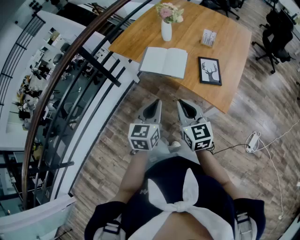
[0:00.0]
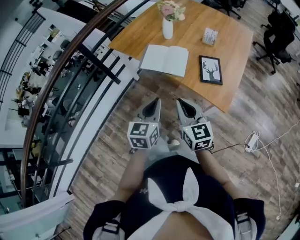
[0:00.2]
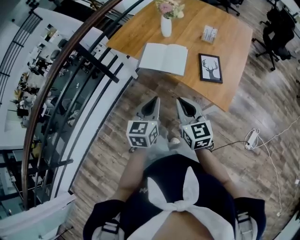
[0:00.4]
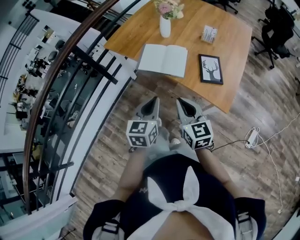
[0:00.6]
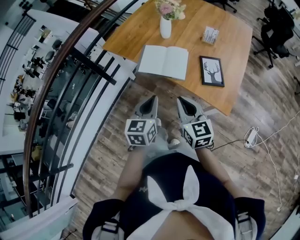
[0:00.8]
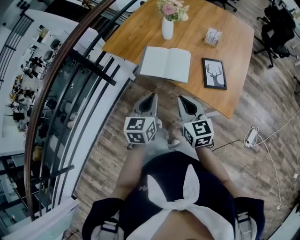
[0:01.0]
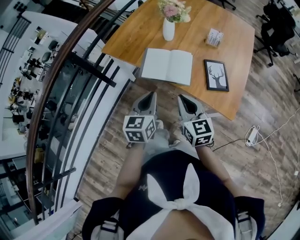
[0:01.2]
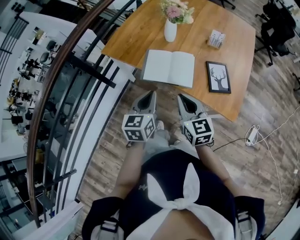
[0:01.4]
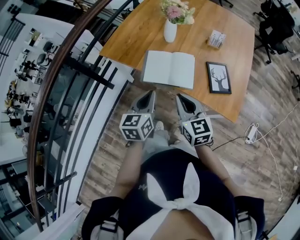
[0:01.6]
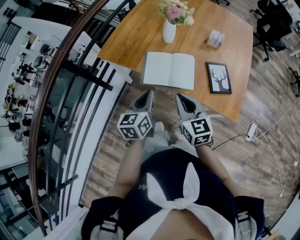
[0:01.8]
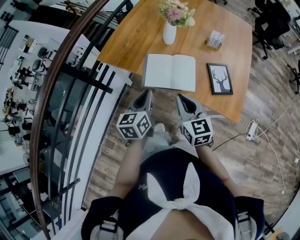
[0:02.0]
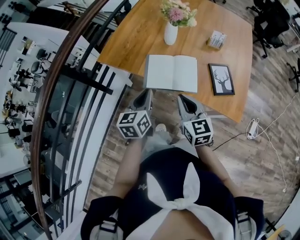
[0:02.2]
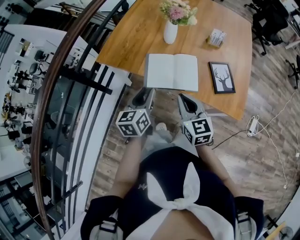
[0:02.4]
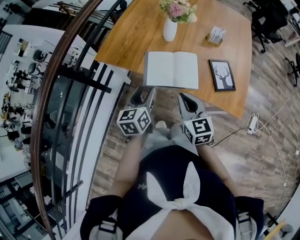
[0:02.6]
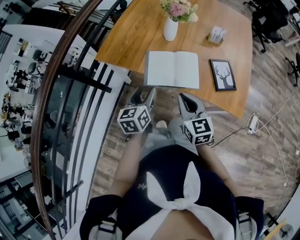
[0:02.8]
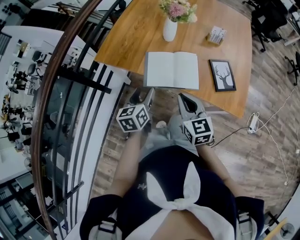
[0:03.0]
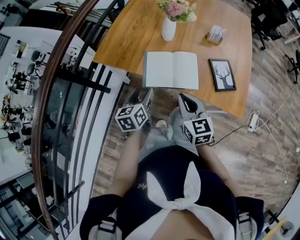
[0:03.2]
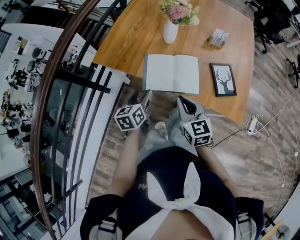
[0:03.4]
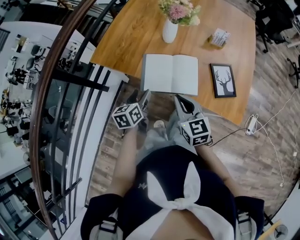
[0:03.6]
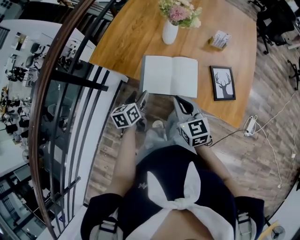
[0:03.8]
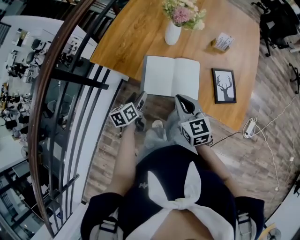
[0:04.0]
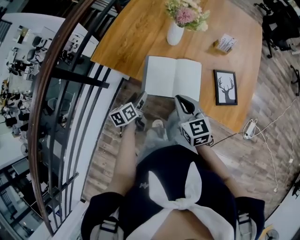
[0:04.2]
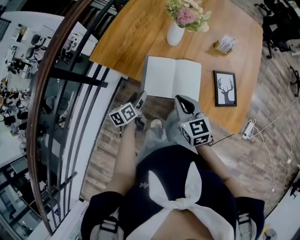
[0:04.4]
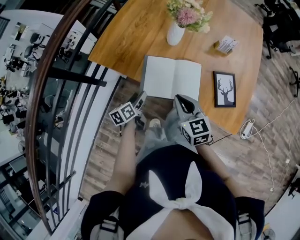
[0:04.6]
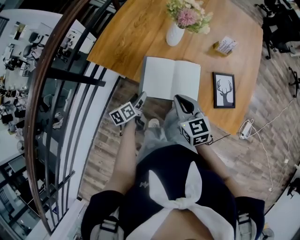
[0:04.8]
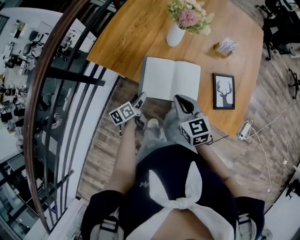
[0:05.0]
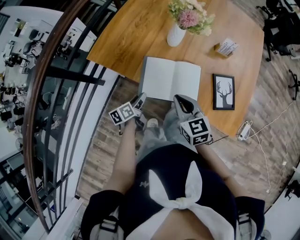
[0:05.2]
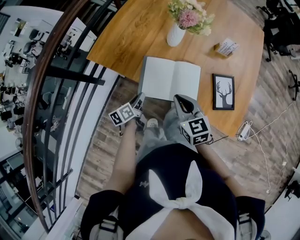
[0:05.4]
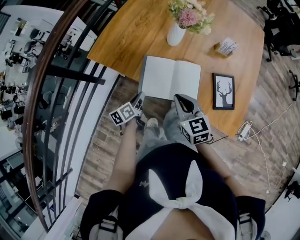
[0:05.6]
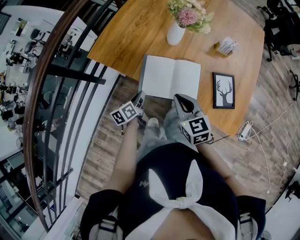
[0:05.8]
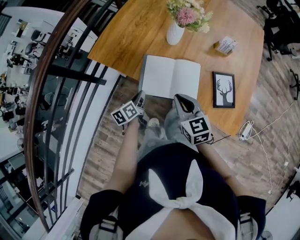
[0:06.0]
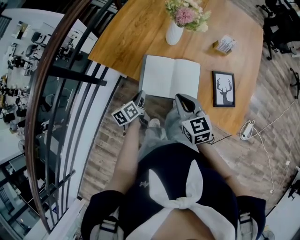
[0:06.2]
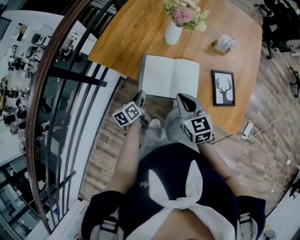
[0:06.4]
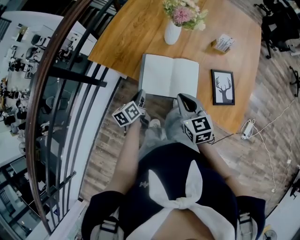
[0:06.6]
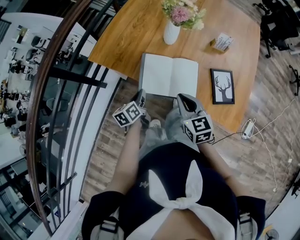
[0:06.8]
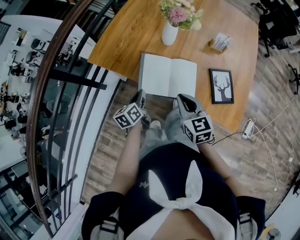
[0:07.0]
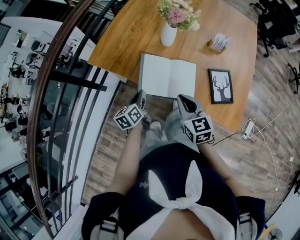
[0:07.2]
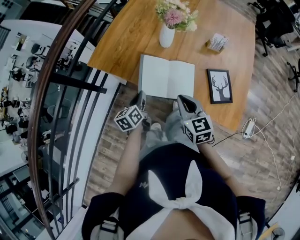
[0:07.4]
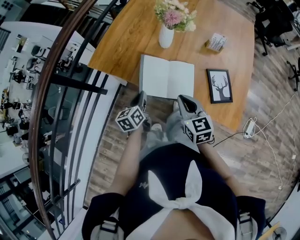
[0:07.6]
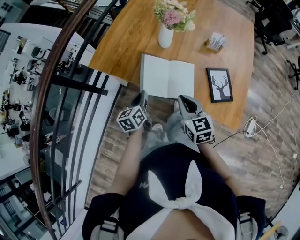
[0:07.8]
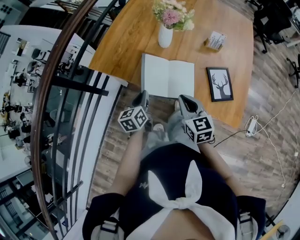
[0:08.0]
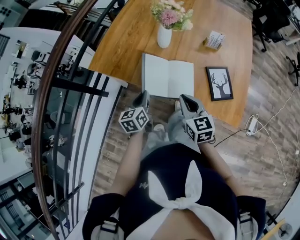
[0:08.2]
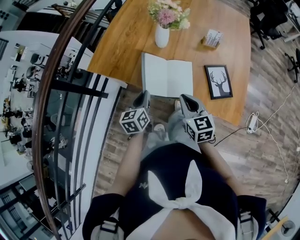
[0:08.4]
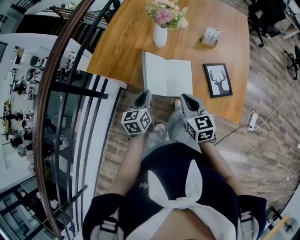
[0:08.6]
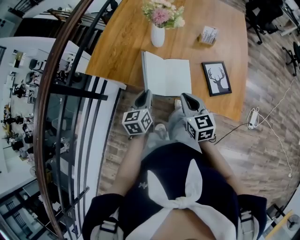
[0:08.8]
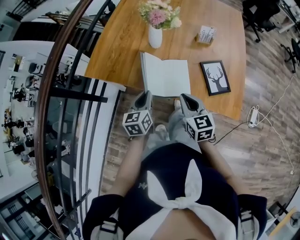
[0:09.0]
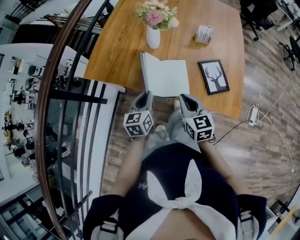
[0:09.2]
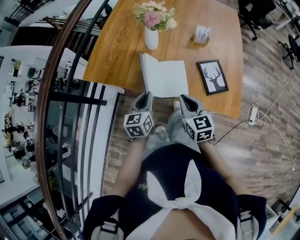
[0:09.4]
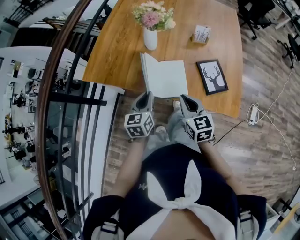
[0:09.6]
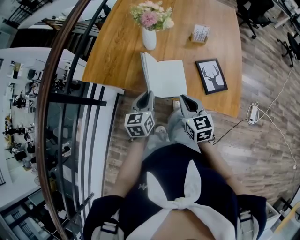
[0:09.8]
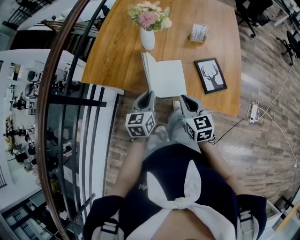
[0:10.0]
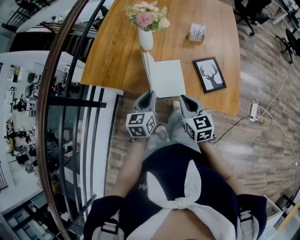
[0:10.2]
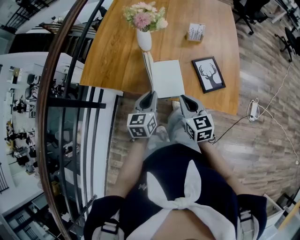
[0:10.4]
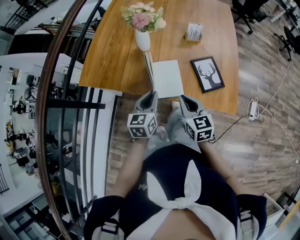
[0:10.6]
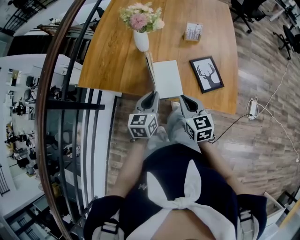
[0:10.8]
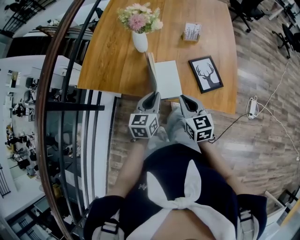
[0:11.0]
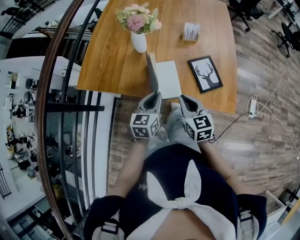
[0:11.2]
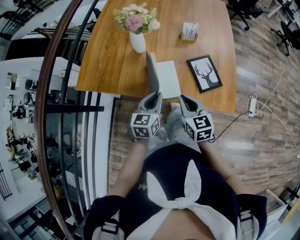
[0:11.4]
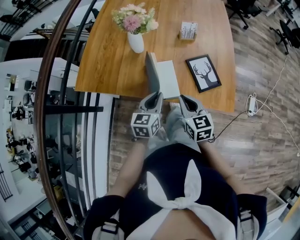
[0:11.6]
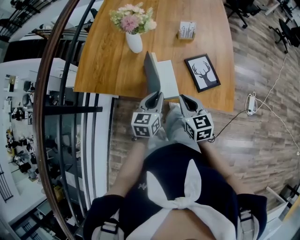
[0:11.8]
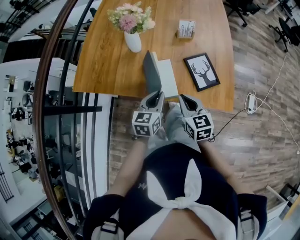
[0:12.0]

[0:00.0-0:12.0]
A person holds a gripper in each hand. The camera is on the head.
0:00.0 to 0:01.6: Both grippers travel together forward and to the left, some 20 cm.
0:01.6 to 0:03.0: The right gripper shifts by approximately 5 cm; the left gripper moves to the left, forward and downward, approximately 10 cm, and opens up.
0:03.0 to 0:04.4: The left gripper goes some 15 cm downward and forward, and rotates some 20 degrees. The right gripper heads forward, covering about 10 cm.
0:04.4 to 0:06.0: The left gripper closes up.
0:06.0 to 0:07.6: The left gripper moves upward, about 5 cm.
0:07.6 to 0:09.0: The left gripper moves some 5 cm.
0:09.0 to 0:10.4: The left gripper is displaced to the right by some 5 cm.
0:10.4 to 0:12.0: The left gripper is displaced to the right by roughly 5 cm.

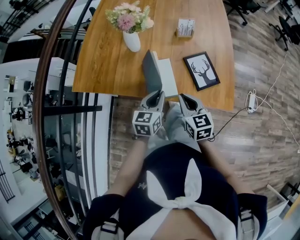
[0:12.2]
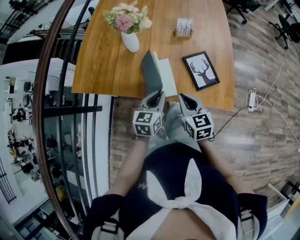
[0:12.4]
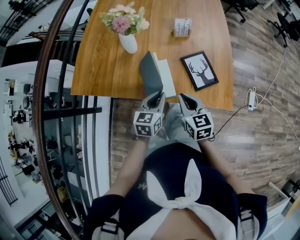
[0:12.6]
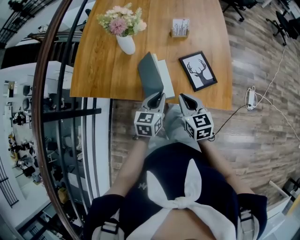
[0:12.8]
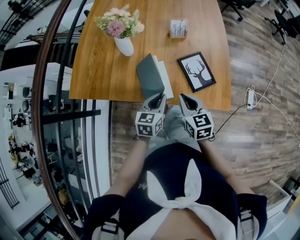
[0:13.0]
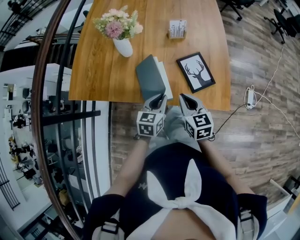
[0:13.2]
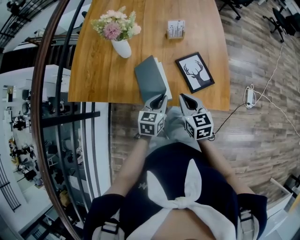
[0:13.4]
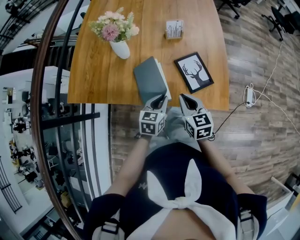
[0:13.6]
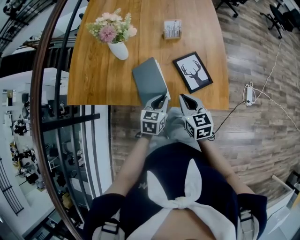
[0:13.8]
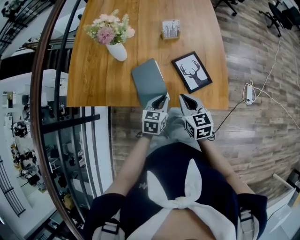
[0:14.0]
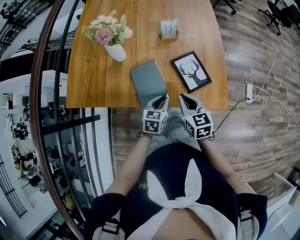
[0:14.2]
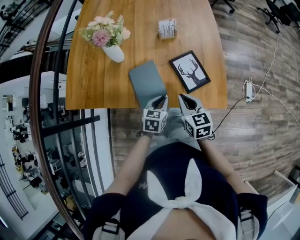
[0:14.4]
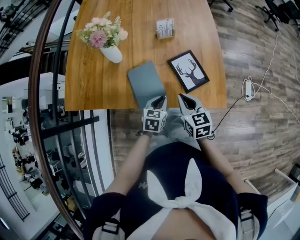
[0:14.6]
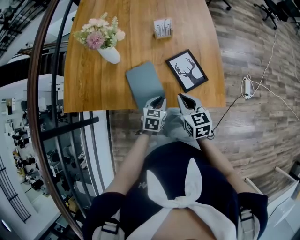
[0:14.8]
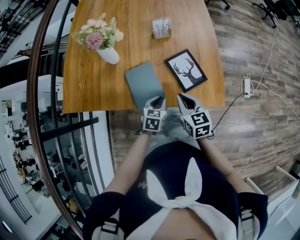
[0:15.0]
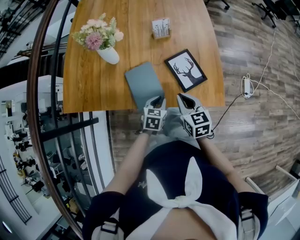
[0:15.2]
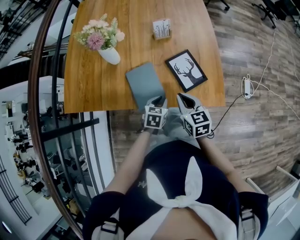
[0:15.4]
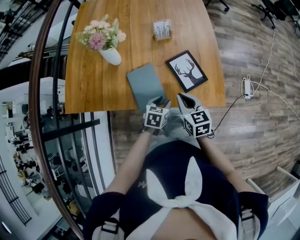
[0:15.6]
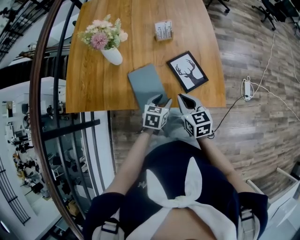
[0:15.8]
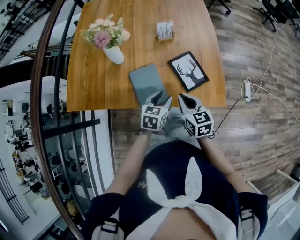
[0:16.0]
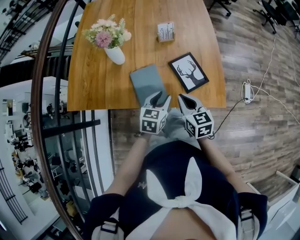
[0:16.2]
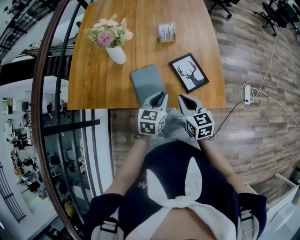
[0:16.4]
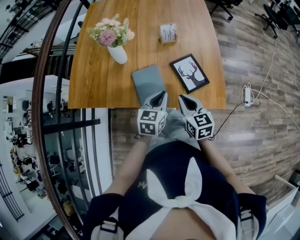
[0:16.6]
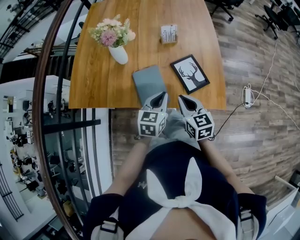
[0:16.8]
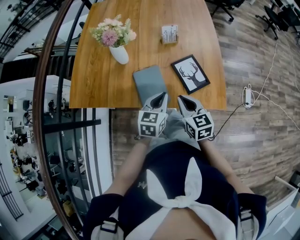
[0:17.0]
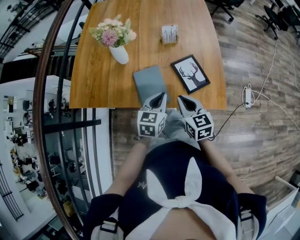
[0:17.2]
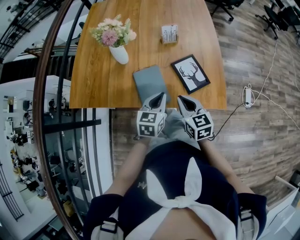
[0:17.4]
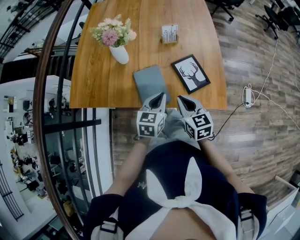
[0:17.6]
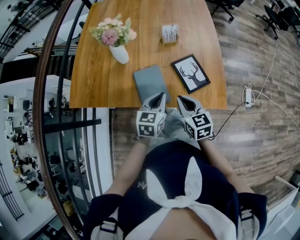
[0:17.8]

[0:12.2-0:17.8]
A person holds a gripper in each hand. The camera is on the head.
0:12.2 to 0:13.6: The right gripper moves roughly 5 cm. Meanwhile the left gripper shifts about 10 cm to the right and downward.
0:13.6 to 0:15.0: The left gripper travels downward by about 5 cm.
0:15.0 to 0:16.4: The left gripper moves upward, some 10 cm, and opens, then closes once more.
0:16.4 to 0:17.8: The grippers make only small movements.

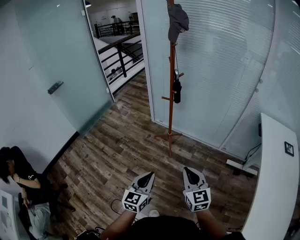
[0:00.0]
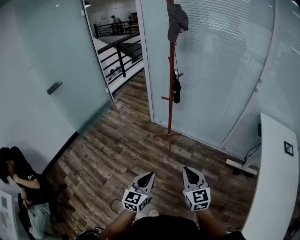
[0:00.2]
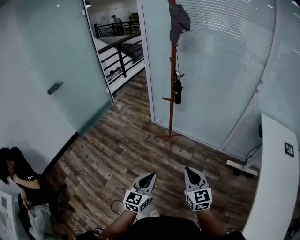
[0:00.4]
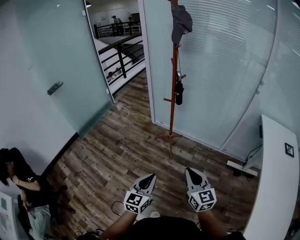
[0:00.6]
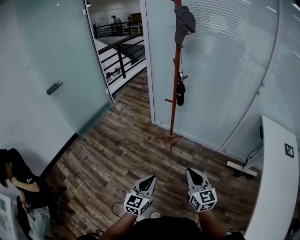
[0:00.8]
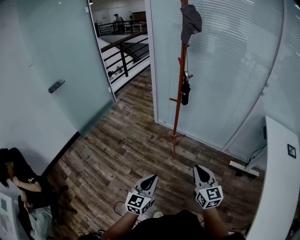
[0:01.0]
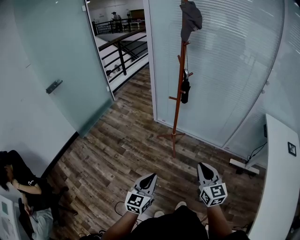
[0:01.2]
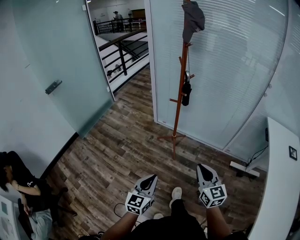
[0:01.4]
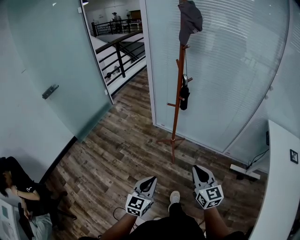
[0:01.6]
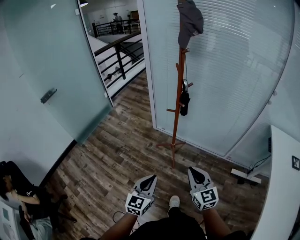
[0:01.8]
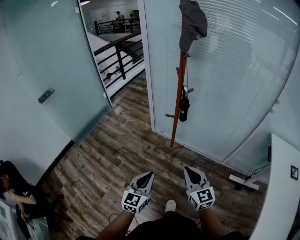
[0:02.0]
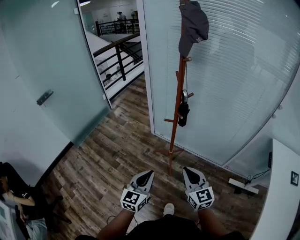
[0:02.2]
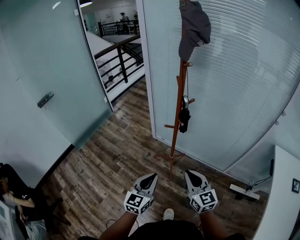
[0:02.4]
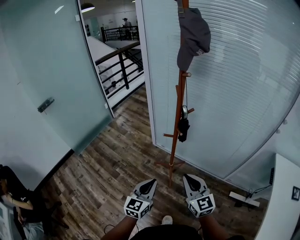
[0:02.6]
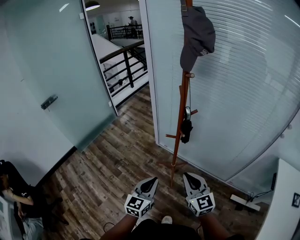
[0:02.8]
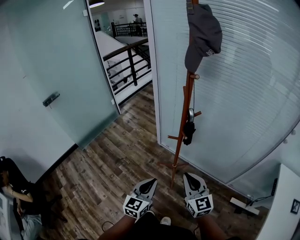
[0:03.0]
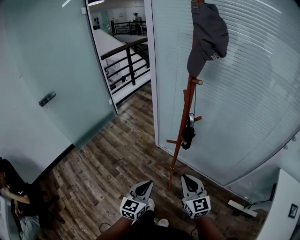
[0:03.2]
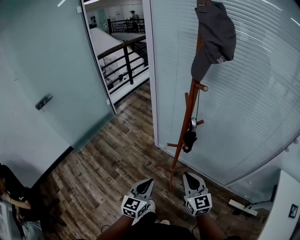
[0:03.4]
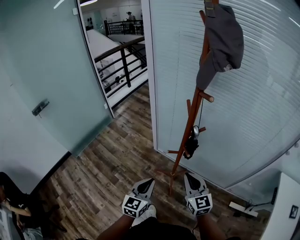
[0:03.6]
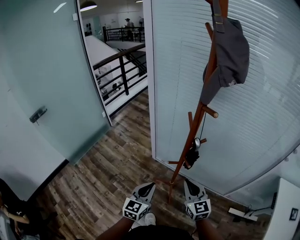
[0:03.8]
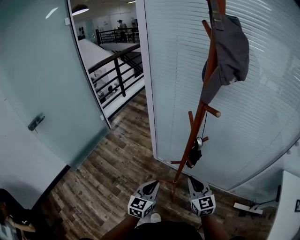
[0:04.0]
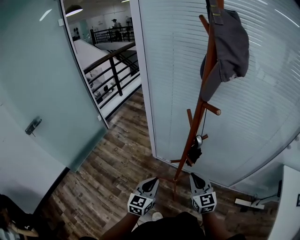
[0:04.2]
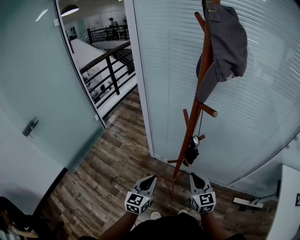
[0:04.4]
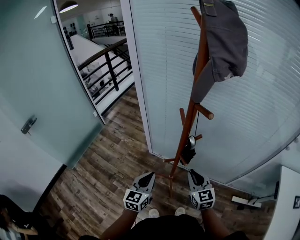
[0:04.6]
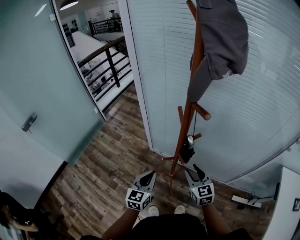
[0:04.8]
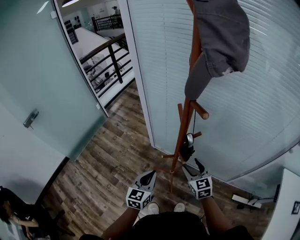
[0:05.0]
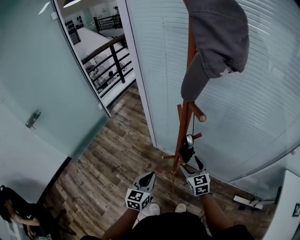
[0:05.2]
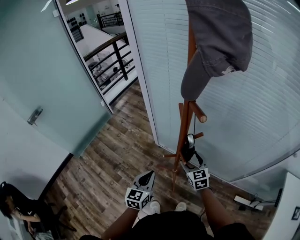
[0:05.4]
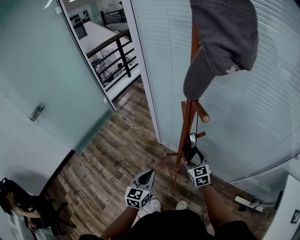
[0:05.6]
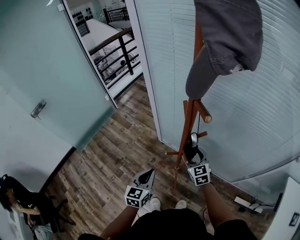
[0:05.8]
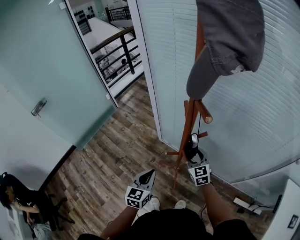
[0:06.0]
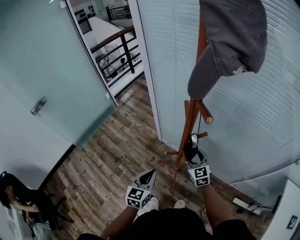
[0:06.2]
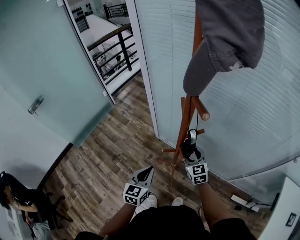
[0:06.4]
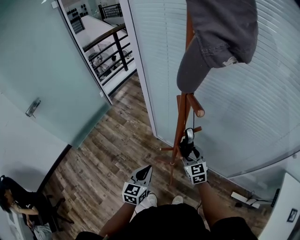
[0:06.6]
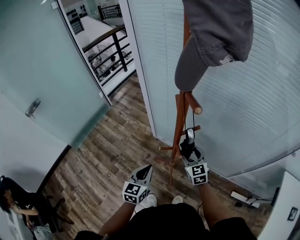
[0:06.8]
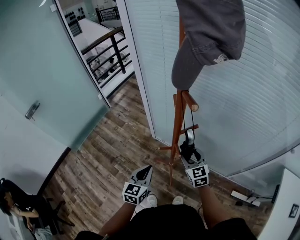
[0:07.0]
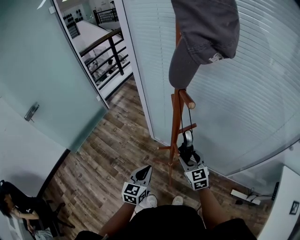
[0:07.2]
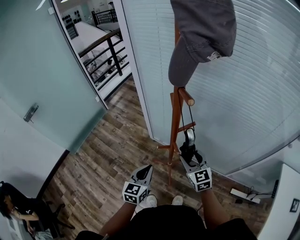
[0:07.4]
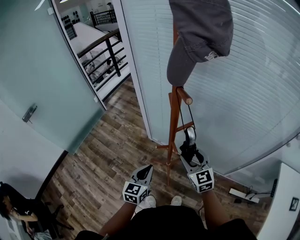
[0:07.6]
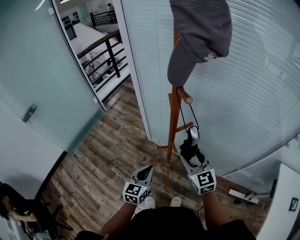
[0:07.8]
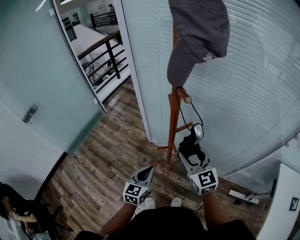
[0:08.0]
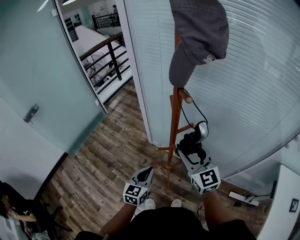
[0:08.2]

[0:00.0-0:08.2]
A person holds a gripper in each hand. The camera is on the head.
0:00.0 to 0:01.6: The two grippers go roughly 10 cm forward.
0:01.6 to 0:03.2: The grippers both shift forward by approximately 25 cm.
0:03.2 to 0:05.0: The left gripper shifts approximately 20 cm forward, while the right gripper moves forward and downward, about 20 cm, and opens its fingers.
0:05.0 to 0:06.6: The right gripper heads forward, covering about 5 cm.
0:06.6 to 0:08.2: The right gripper moves upward, about 20 cm.
